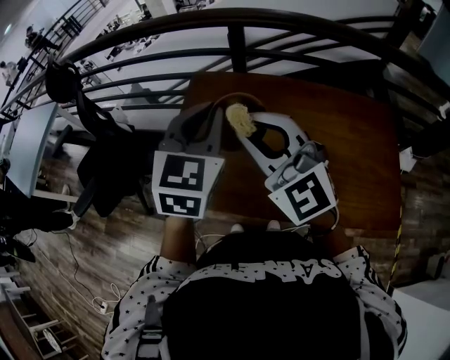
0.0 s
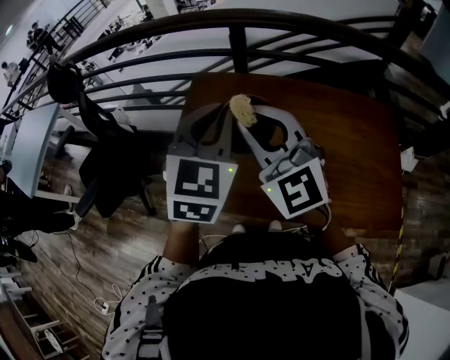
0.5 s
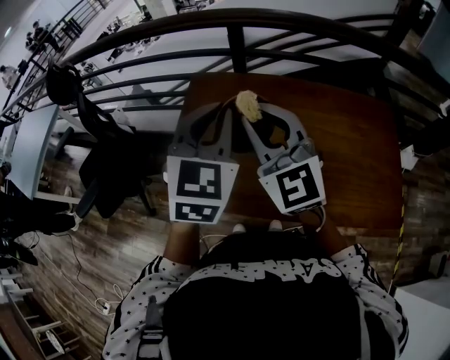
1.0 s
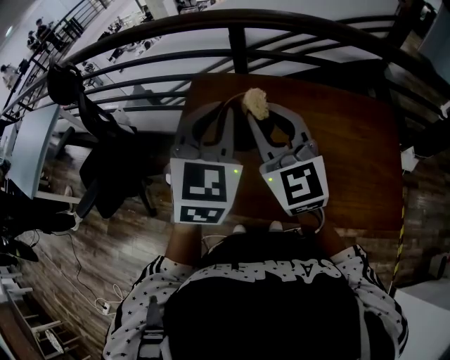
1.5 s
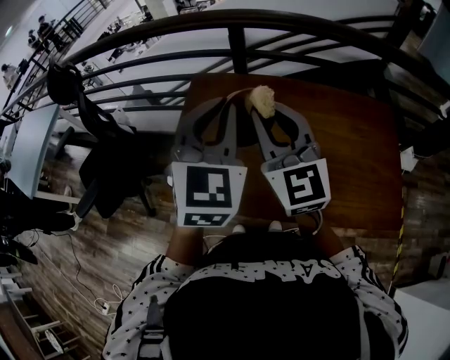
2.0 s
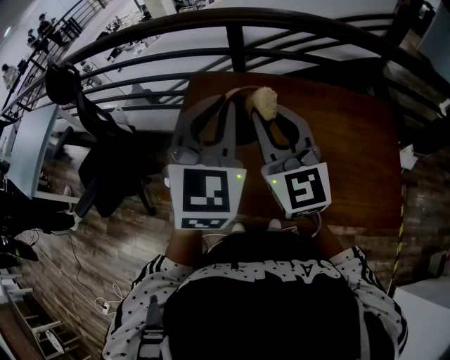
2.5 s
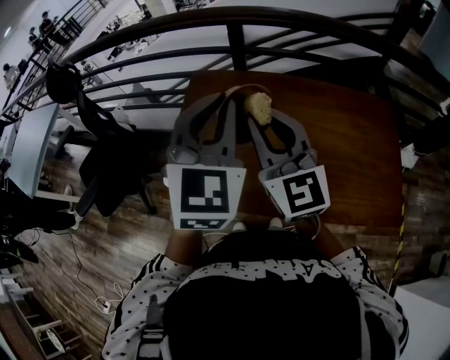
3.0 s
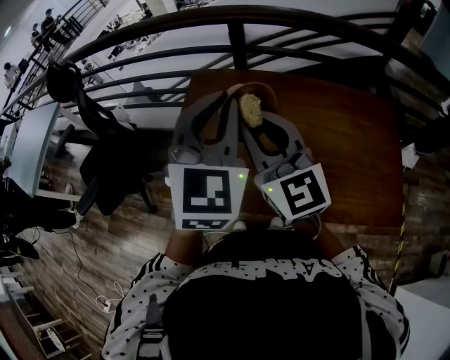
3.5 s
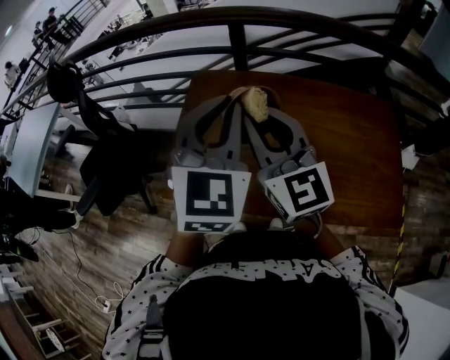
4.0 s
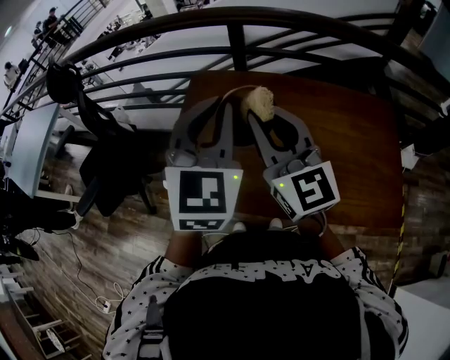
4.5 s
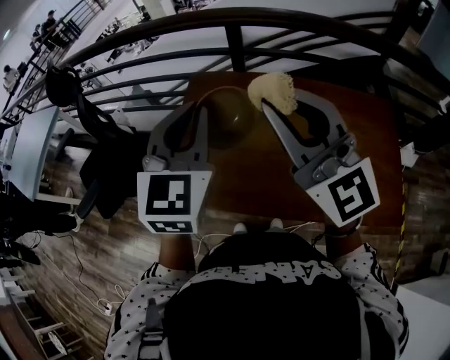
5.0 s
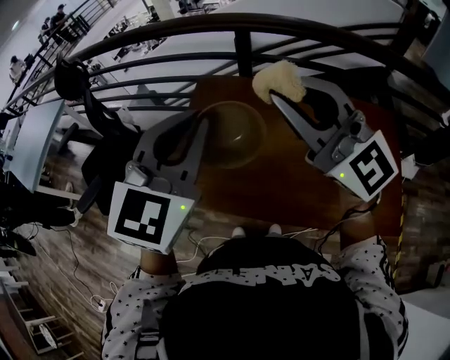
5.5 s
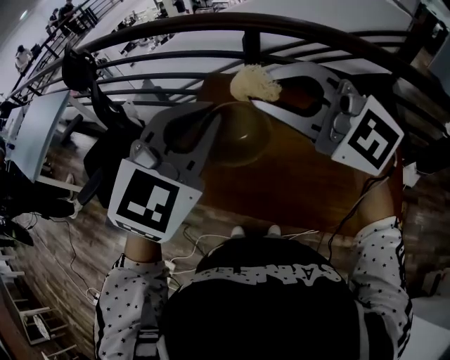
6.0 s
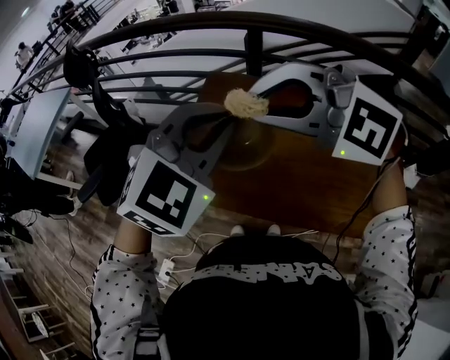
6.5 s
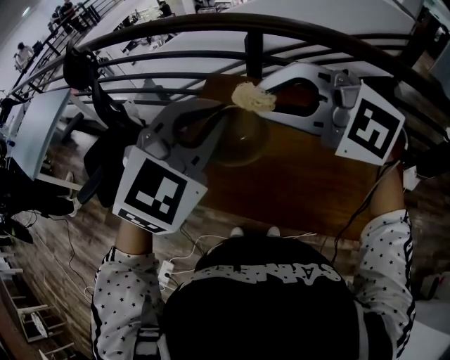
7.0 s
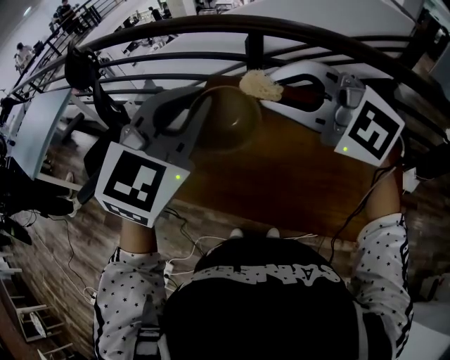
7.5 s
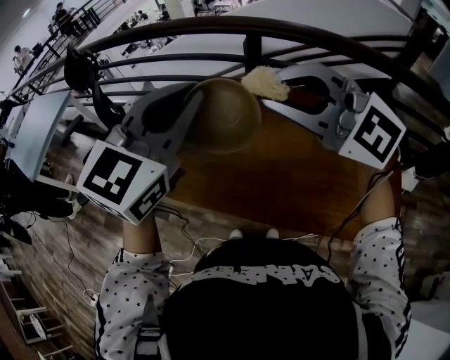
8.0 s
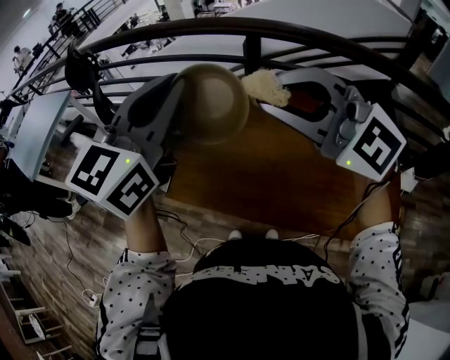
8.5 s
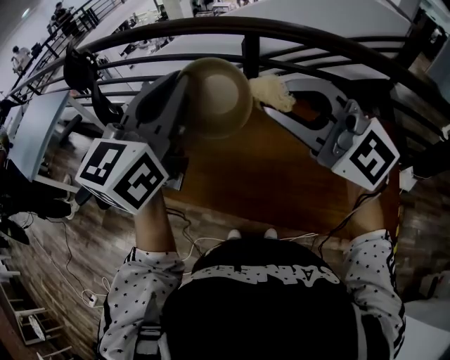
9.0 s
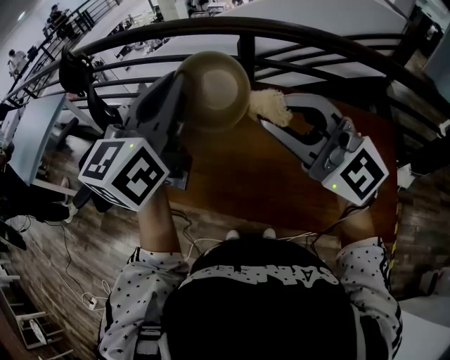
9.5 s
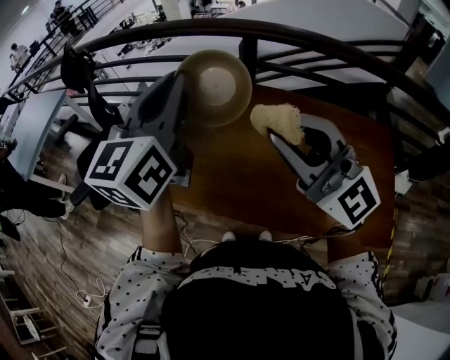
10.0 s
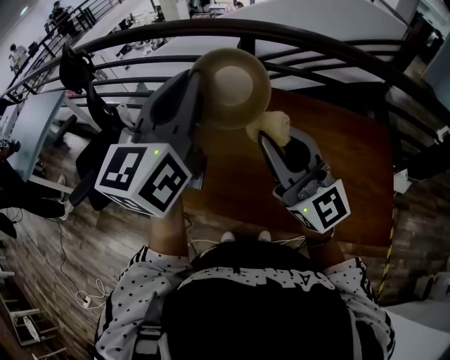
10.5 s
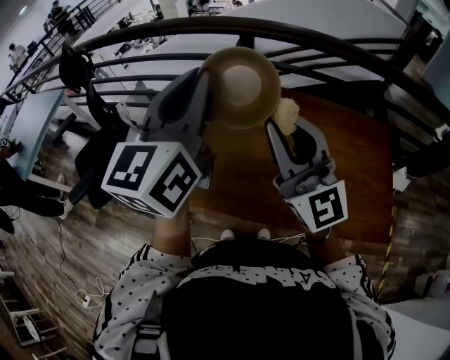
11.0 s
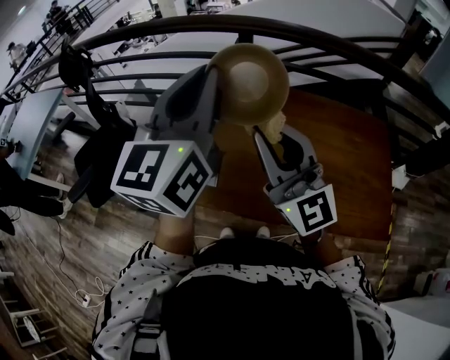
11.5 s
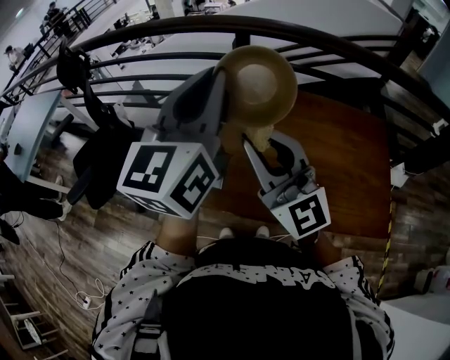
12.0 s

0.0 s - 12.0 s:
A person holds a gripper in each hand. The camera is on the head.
0.0 s - 2.0 s: The right gripper shifts by some 5 cm, and turns by about 30 degrees.
2.0 s - 4.0 s: The grippers move only a little.
4.0 s - 6.0 s: The right gripper is displaced upward by approximately 10 cm, and rotates some 50 degrees. The left gripper shifts by about 5 cm.
8.0 s - 10.0 s: The right gripper is displaced backward by about 5 cm, and swivels approximately 30 degrees, while the left gripper changes its angle by about 30 degrees.
10.0 s - 12.0 s: The left gripper goes approximately 5 cm to the right; the right gripper is displaced downward by roughly 5 cm.

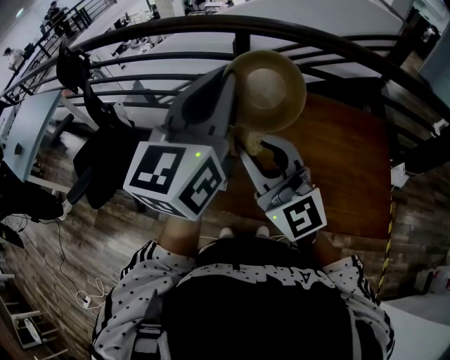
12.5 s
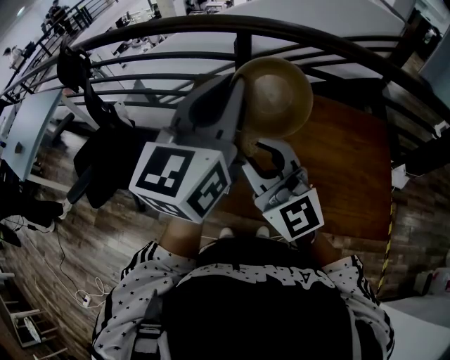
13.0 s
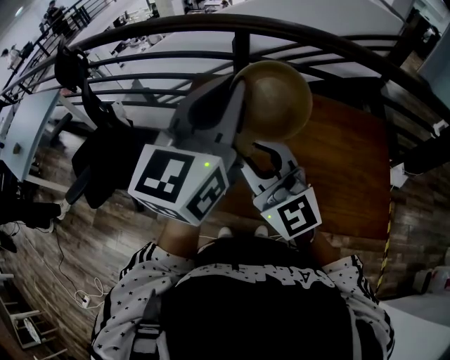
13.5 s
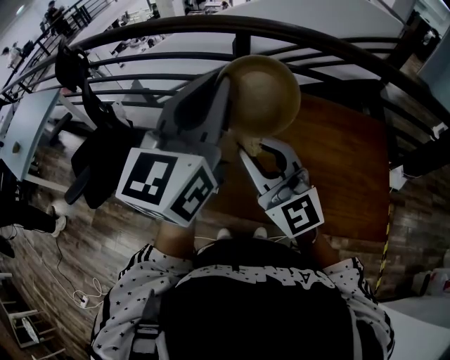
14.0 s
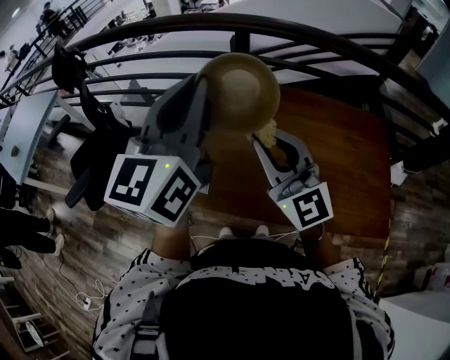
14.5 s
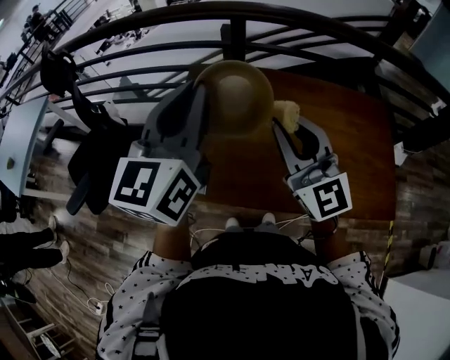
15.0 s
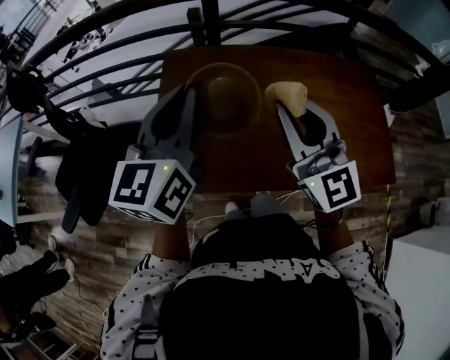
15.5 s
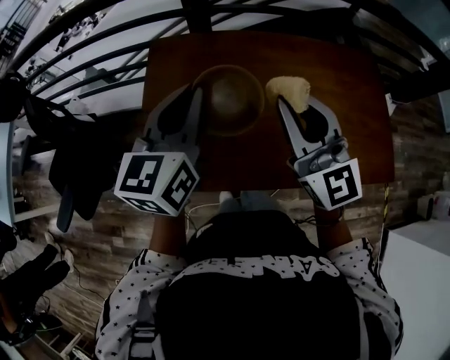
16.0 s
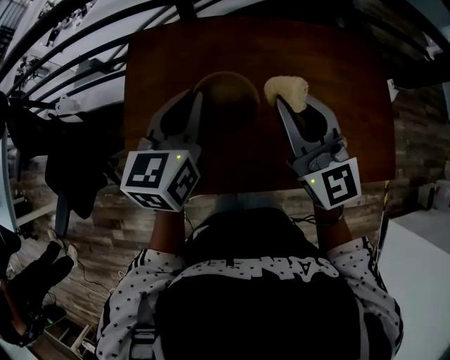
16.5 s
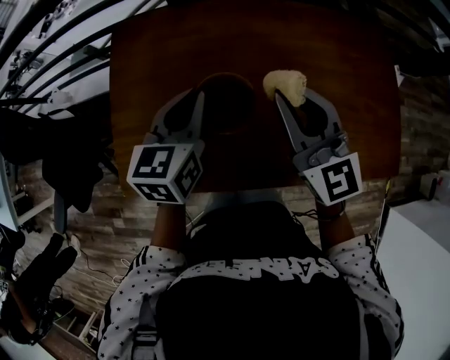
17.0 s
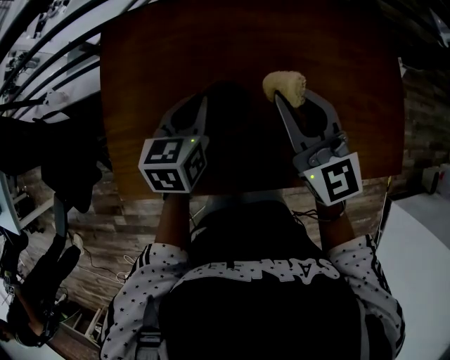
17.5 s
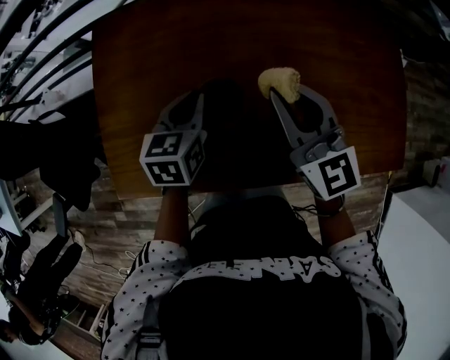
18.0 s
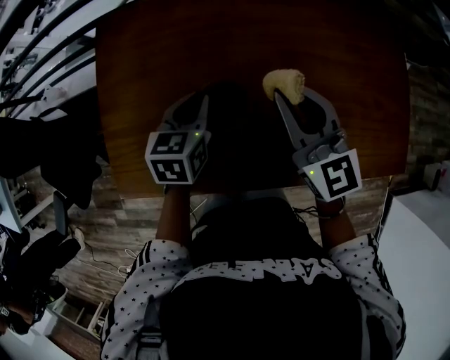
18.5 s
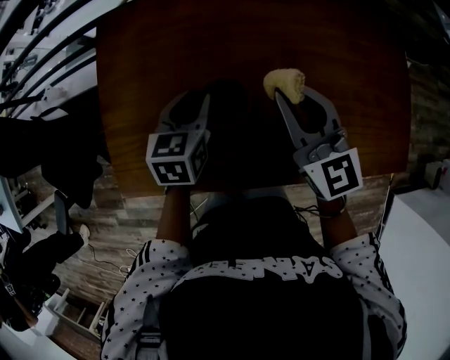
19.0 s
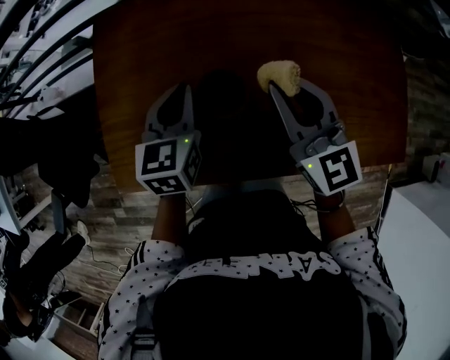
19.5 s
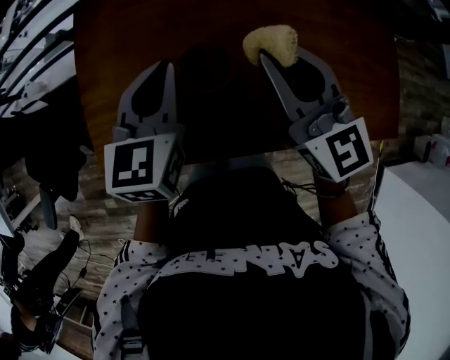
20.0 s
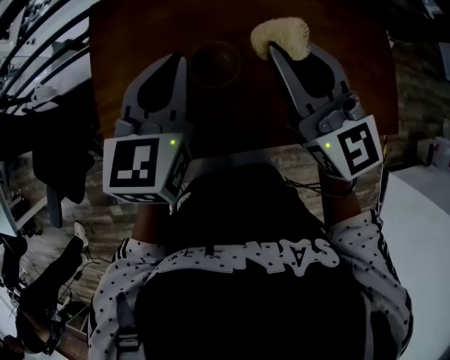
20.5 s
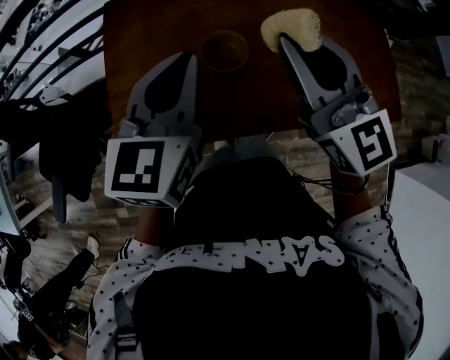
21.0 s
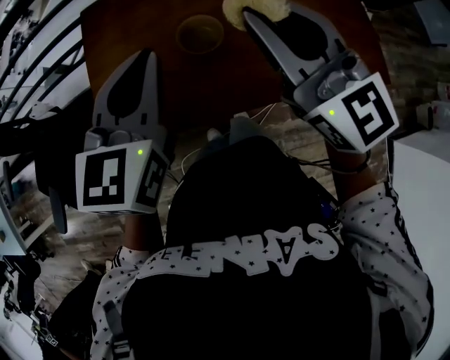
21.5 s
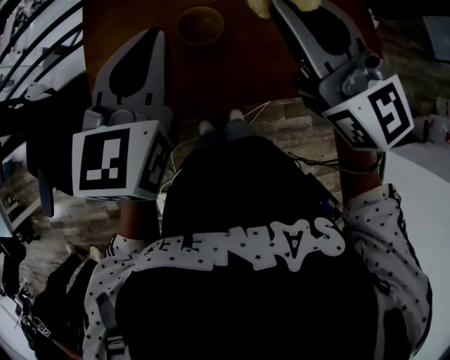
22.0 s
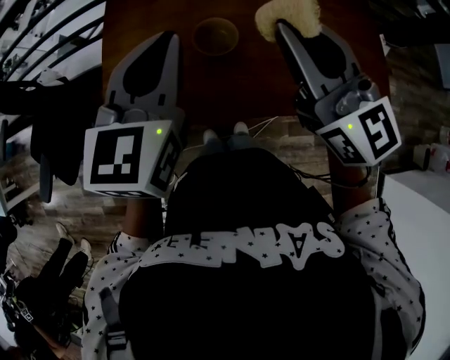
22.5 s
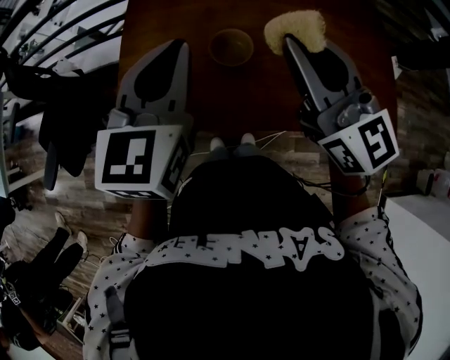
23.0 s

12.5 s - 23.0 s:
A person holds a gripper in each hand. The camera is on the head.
12.5 s - 14.5 s: The right gripper ends up some 5 cm from where it was.
14.5 s - 16.5 s: The right gripper is displaced to the right, downward and forward by approximately 15 cm, and swivels approximately 20 degrees. Meanwhile the left gripper goes some 25 cm downward, and swivels approximately 30 degrees.
16.5 s - 19.0 s: The left gripper heads downward, covering some 20 cm, turns by some 20 degrees, and opens up. Meanwhile the right gripper heads downward, covering approximately 10 cm.
19.0 s - 21.0 s: The grippers both shift upward and backward by roughly 20 cm. The left gripper changes its angle by roughly 20 degrees, and closes its fingers.
21.0 s - 23.0 s: The grippers move only a little.

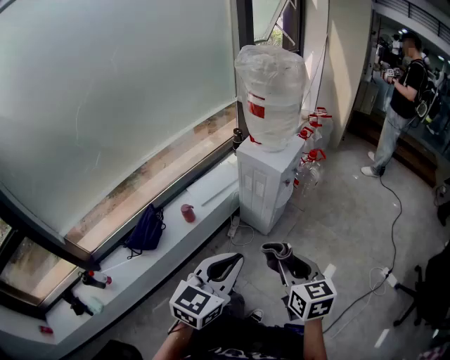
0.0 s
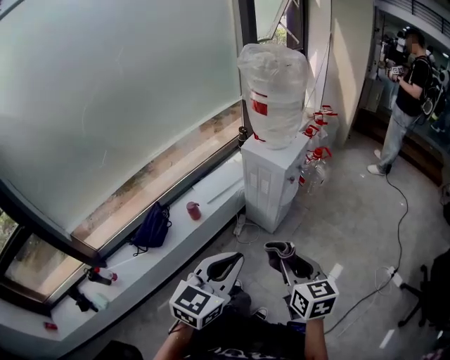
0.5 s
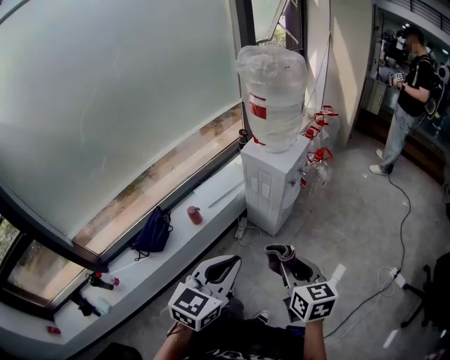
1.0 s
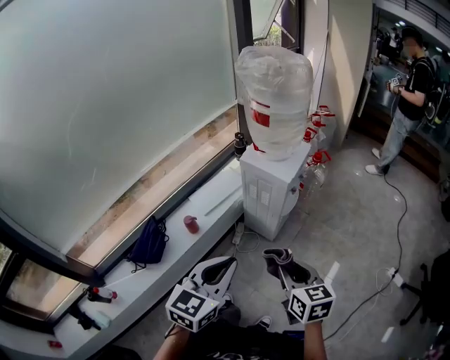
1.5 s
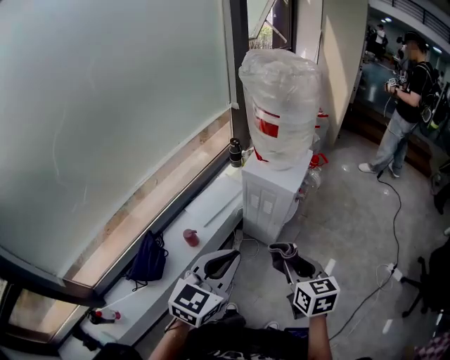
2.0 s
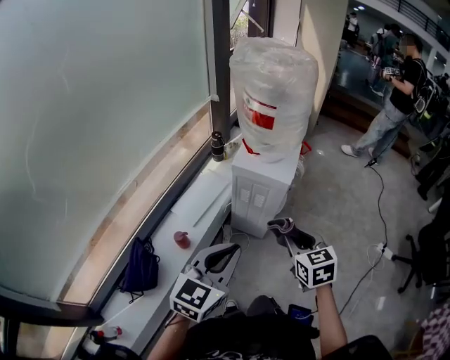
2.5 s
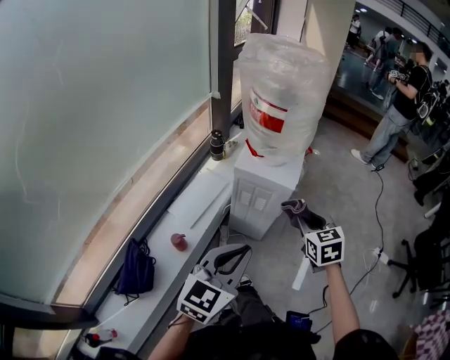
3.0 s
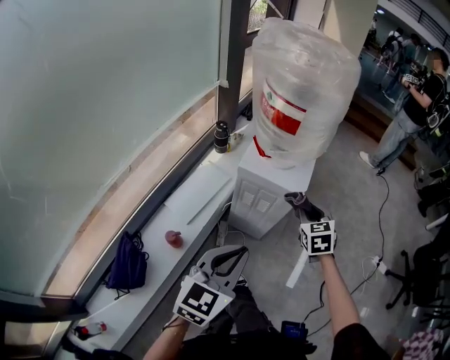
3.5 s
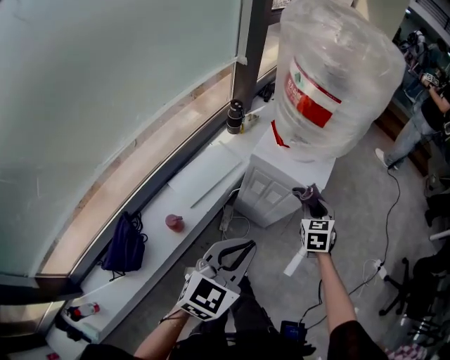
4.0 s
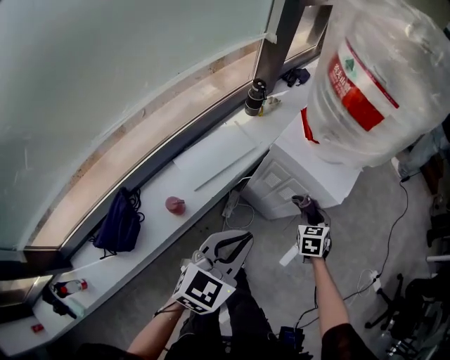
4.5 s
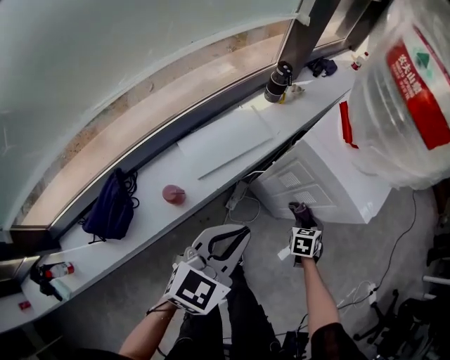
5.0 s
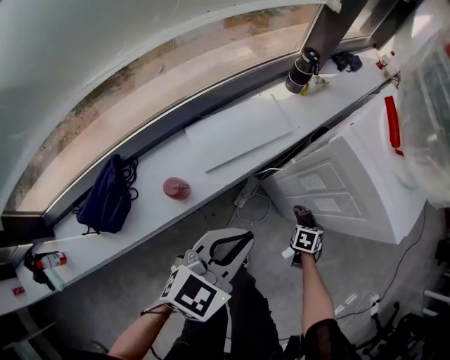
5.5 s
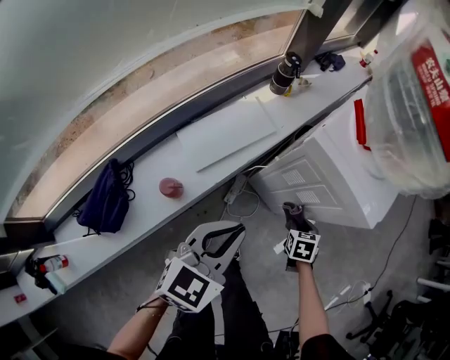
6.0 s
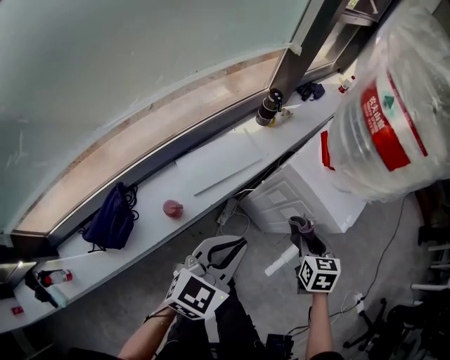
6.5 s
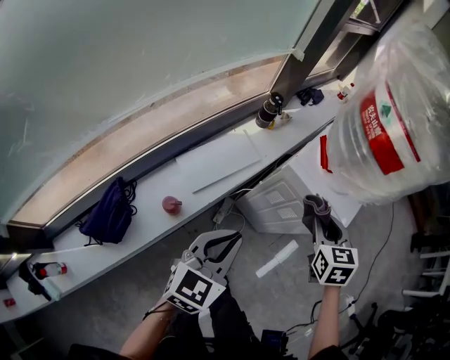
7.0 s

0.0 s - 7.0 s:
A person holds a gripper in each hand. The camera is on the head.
0.0 s - 2.0 s: Both grippers travel together forward and to the left, roughly 15 cm.
2.0 s - 3.5 s: The left gripper goes approximately 15 cm forward, downward and to the left. The right gripper goes about 25 cm forward, and rotates approximately 30 degrees.
3.5 s - 5.0 s: The left gripper shifts some 20 cm downward and forward; the right gripper heads downward, covering about 35 cm, and changes its angle by approximately 20 degrees.
5.0 s - 7.0 s: The left gripper goes about 5 cm upward, while the right gripper shifts approximately 30 cm upward, and changes its angle by about 20 degrees.
